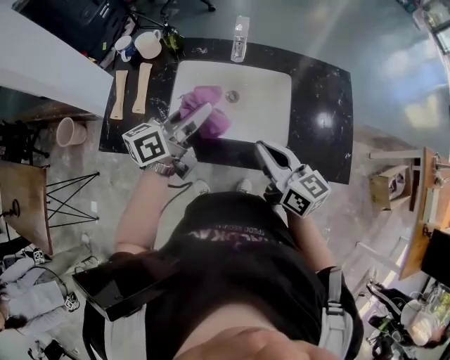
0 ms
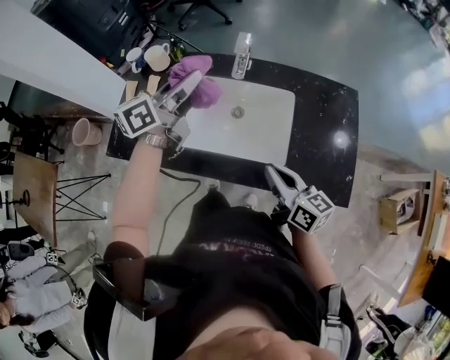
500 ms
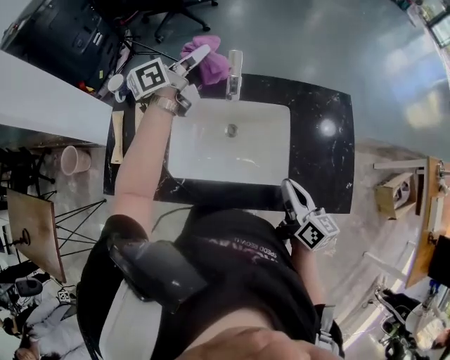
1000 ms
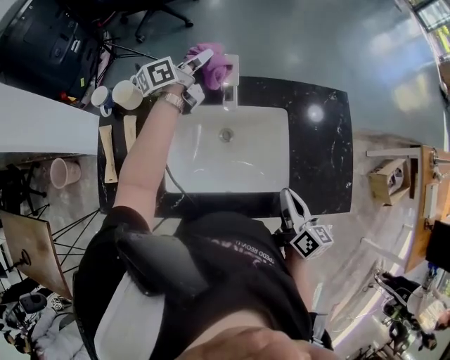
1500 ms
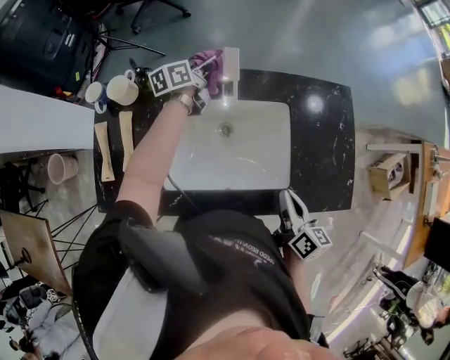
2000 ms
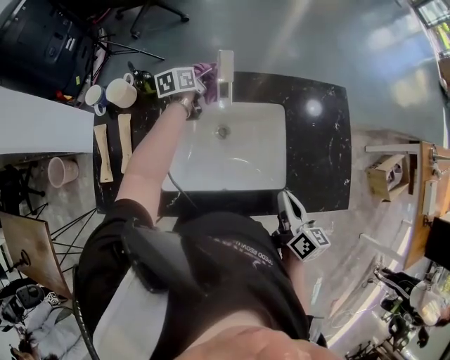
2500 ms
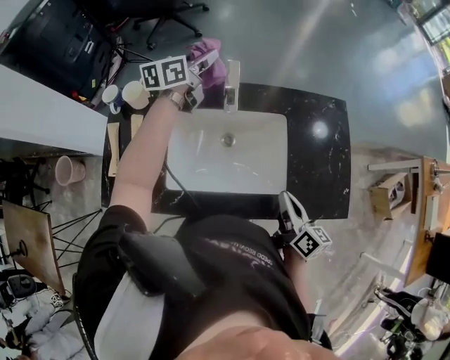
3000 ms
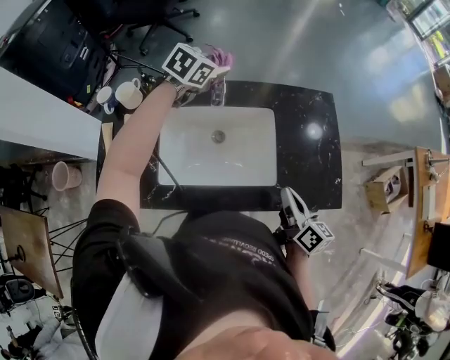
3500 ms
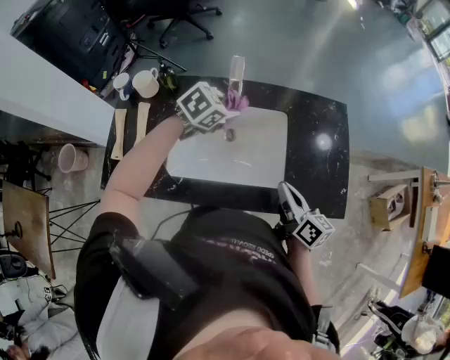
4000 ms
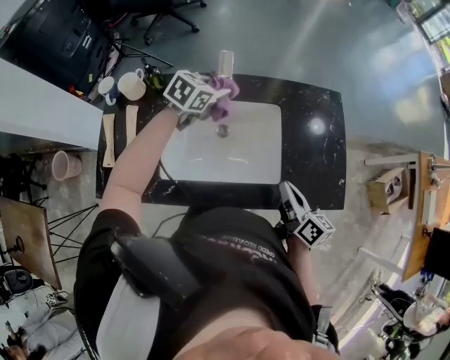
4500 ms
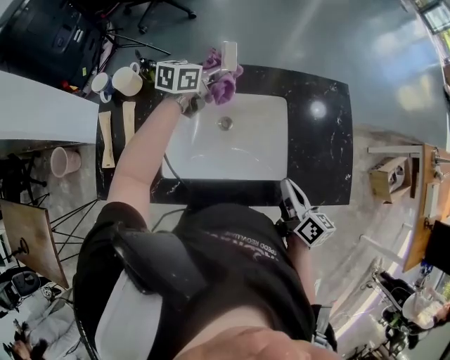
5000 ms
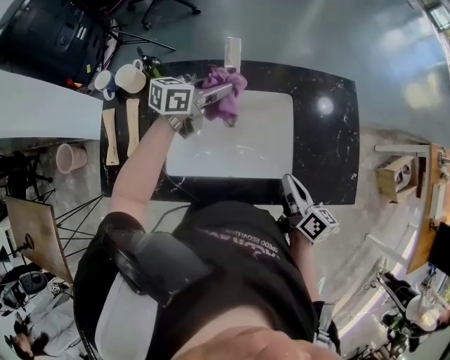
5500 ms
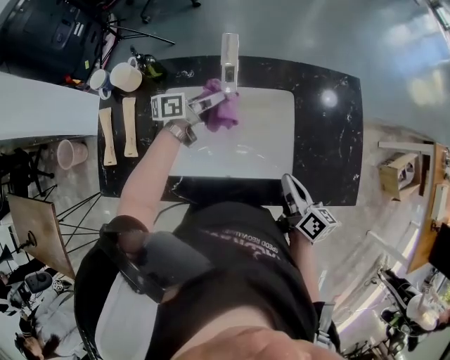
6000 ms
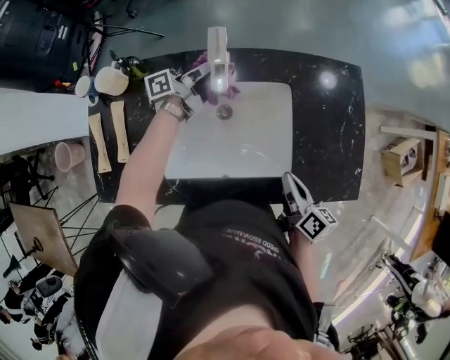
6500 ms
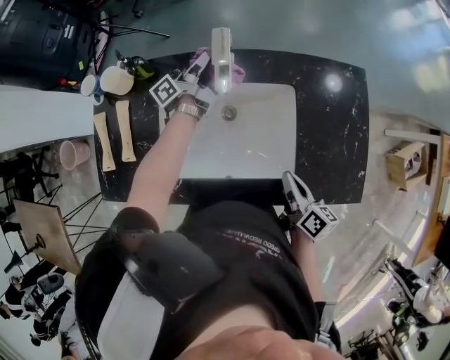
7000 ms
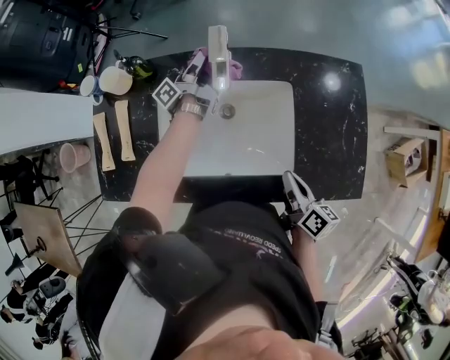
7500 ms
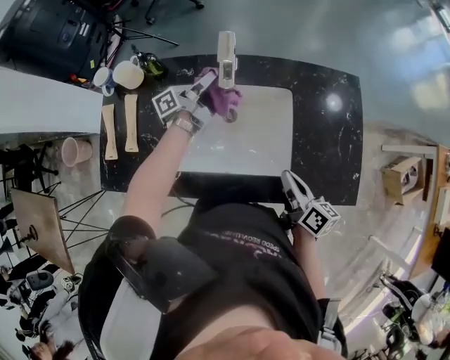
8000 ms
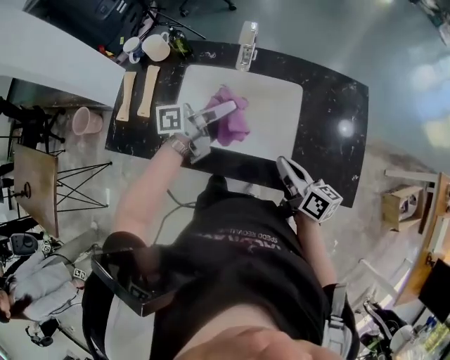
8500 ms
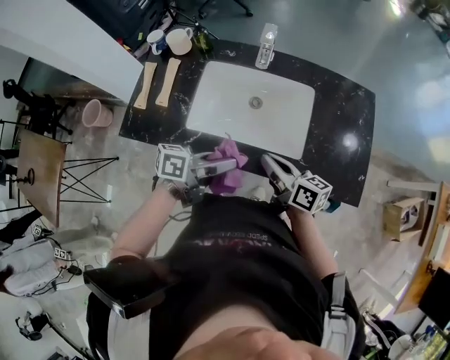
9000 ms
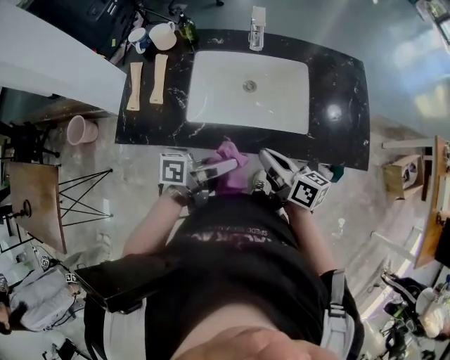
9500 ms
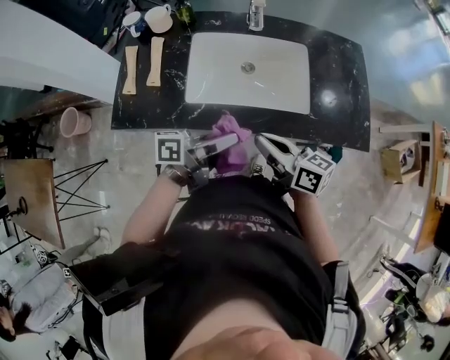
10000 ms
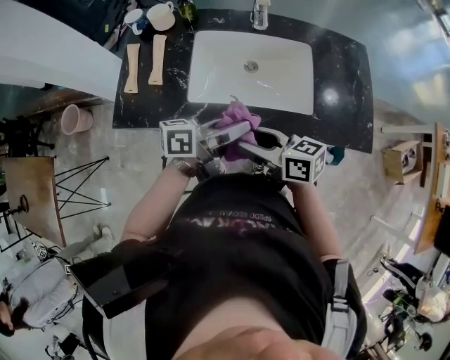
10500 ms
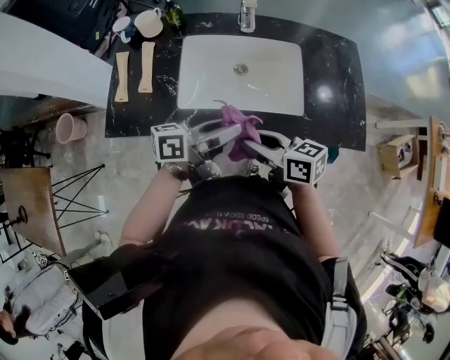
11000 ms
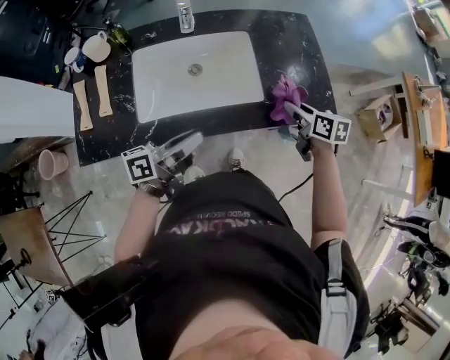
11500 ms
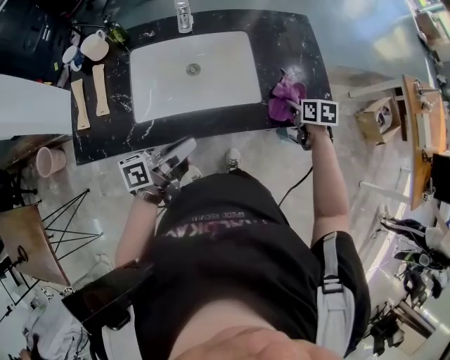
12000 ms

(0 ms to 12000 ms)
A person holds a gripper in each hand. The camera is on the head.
0 ms - 2000 ms: The left gripper moves forward, some 35 cm. Meanwhile the right gripper heads to the right, downward and forward, covering approximately 15 cm, and swivels about 40 degrees.
2000 ms - 4000 ms: The left gripper moves up and down over roughly 20 cm, changing direction 2 times, and rotates around the line of its fingers by roughly 50 degrees, clockwise from behind.
4000 ms - 6000 ms: The right gripper shifts some 5 cm downward; the left gripper travels downward and to the left by about 10 cm, reaches approximately 10 cm forward, then returns, and twists about 60 degrees counterclockwise, seen from behind.
6000 ms - 8000 ms: The left gripper goes forward and returns, some 10 cm each way, and changes its angle by some 40 degrees.
8000 ms - 10000 ms: The right gripper travels to the left, backward and upward by some 20 cm, and changes its angle by roughly 30 degrees. The left gripper is displaced backward by about 40 cm, and swivels some 30 degrees.
10000 ms - 12000 ms: The right gripper changes place by roughly 35 cm, tilts its fingers roughly 40 degrees downward, and opens its fingers.

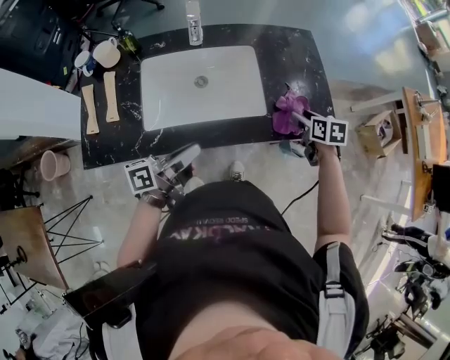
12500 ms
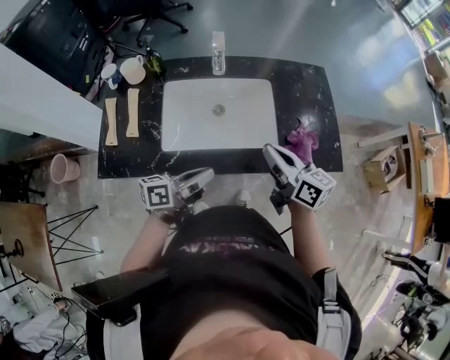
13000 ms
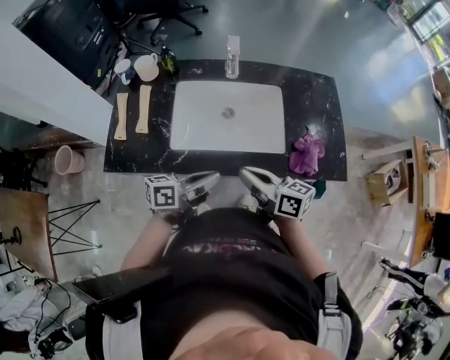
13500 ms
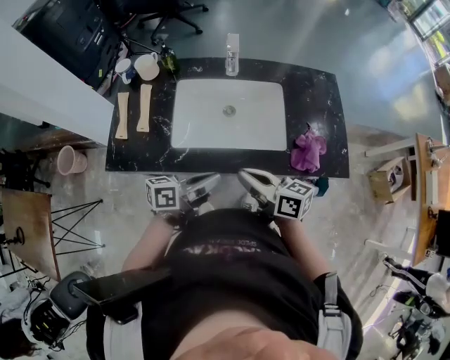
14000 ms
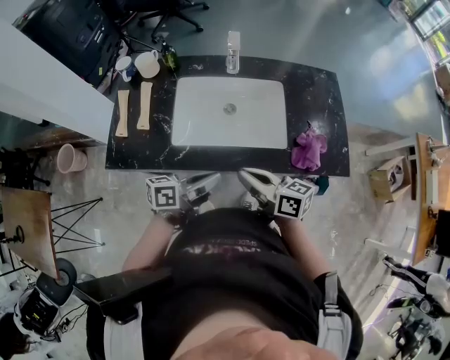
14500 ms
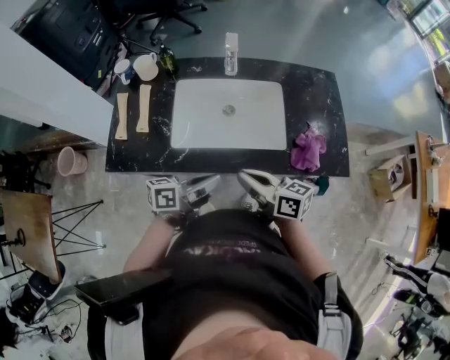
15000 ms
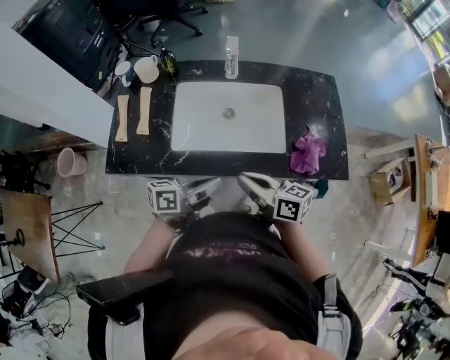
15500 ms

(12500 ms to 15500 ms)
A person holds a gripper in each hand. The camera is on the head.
12500 ms - 14000 ms: The right gripper is displaced to the left, backward and upward by about 35 cm, points its fingers some 40 degrees further upward, and closes.
14000 ms - 15500 ms: Neither gripper changes place.

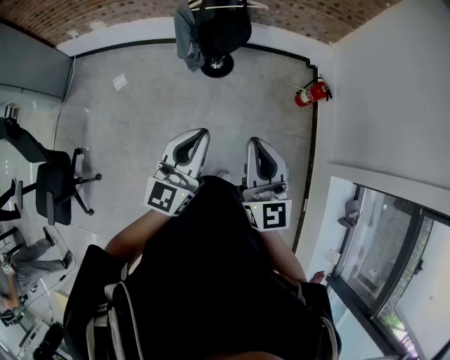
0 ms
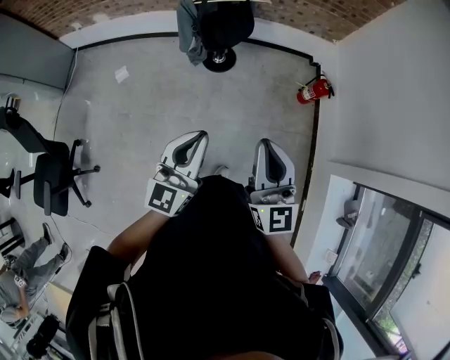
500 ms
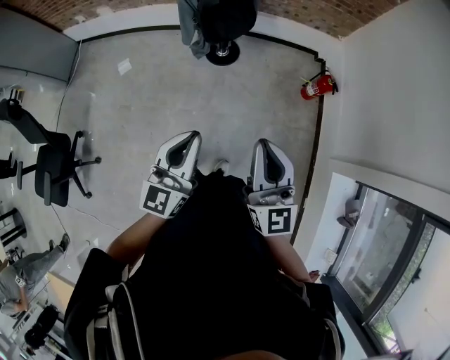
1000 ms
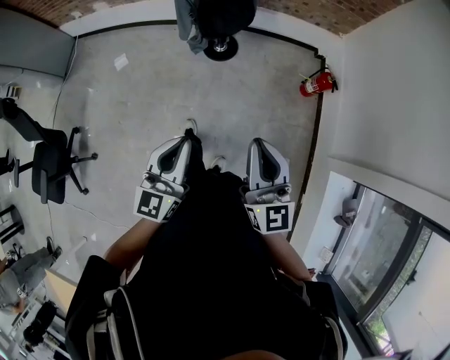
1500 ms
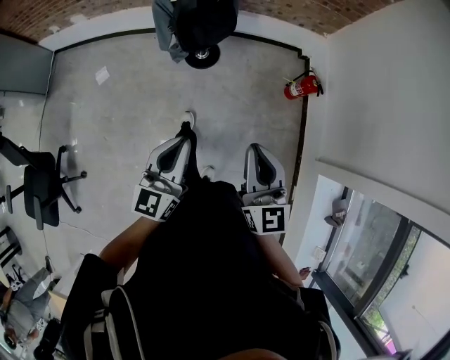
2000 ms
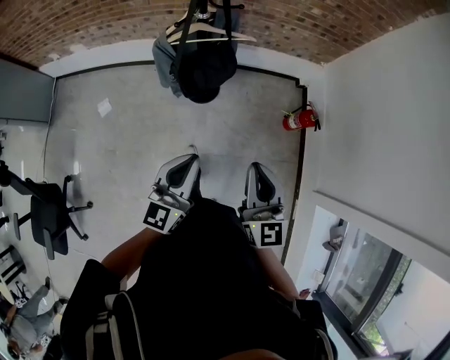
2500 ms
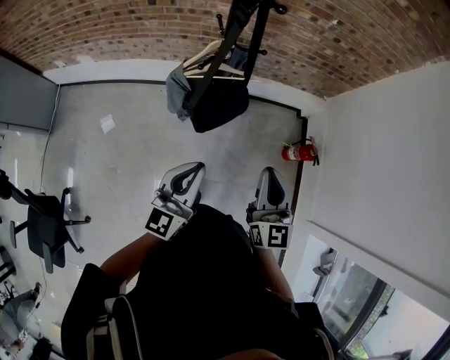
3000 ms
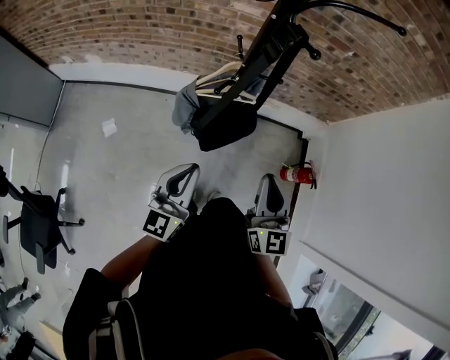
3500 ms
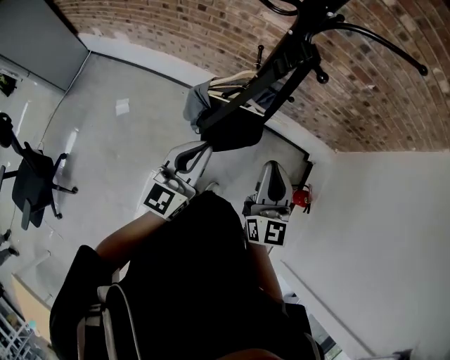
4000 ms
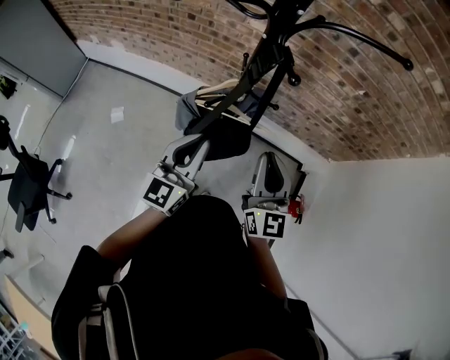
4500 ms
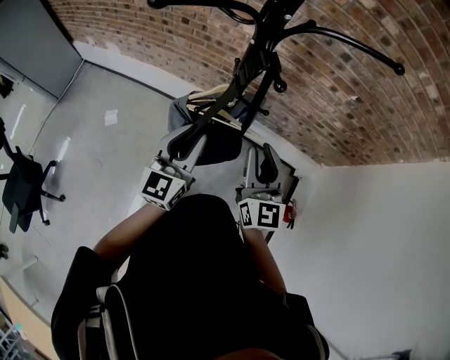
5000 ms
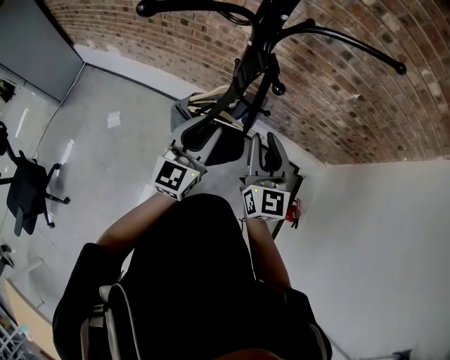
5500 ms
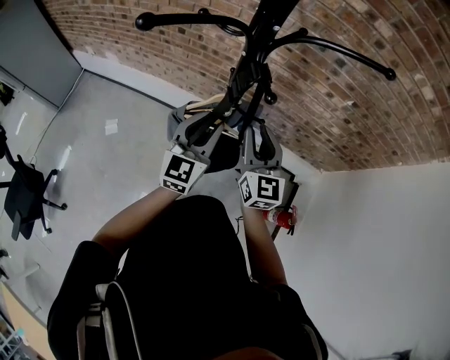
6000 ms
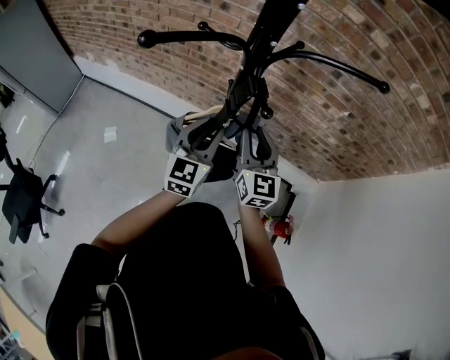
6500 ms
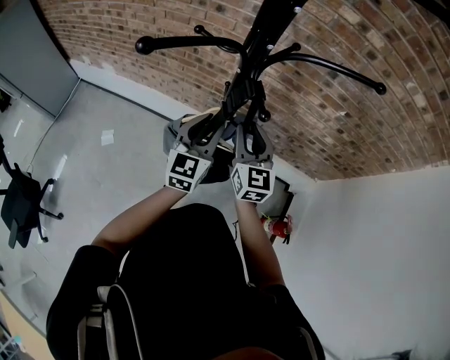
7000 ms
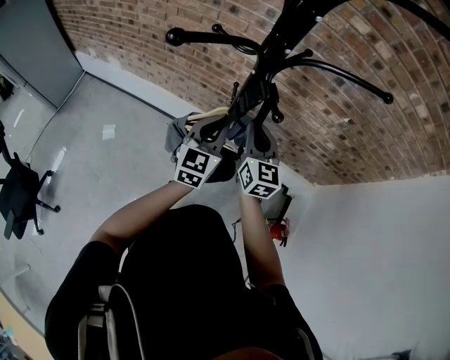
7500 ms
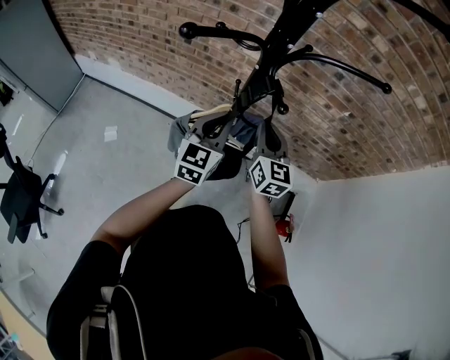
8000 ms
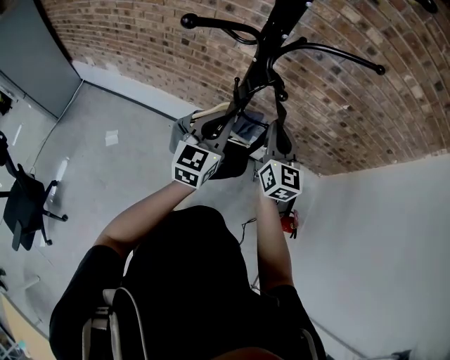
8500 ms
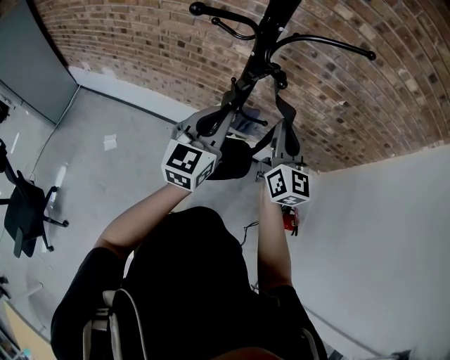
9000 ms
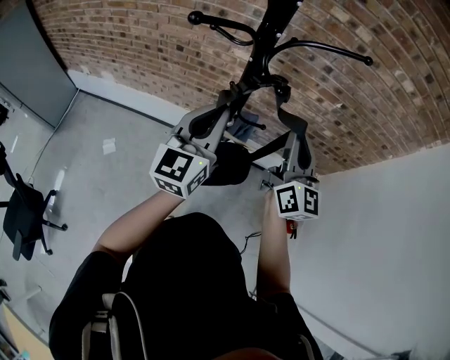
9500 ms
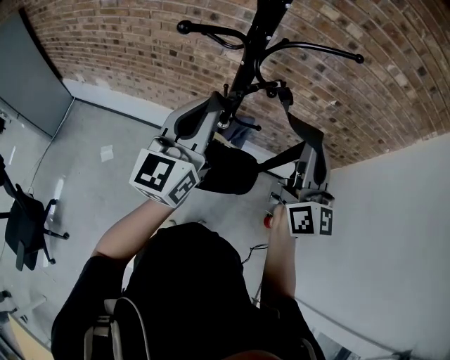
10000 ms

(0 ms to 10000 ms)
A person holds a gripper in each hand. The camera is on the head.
0 ms - 2000 ms: The right gripper goes some 10 cm to the right, downward and forward, while the left gripper heads downward, covering some 5 cm.
2000 ms - 4000 ms: Both grippers move forward, approximately 40 cm.
4000 ms - 6000 ms: The left gripper is displaced forward and to the right by some 15 cm, and opens up, while the right gripper goes roughly 15 cm forward.
6000 ms - 8000 ms: The left gripper closes up.
8000 ms - 10000 ms: The left gripper travels upward and backward by about 20 cm, and swivels approximately 20 degrees. Meanwhile the right gripper moves upward, backward and to the right, about 25 cm, and turns by roughly 30 degrees.

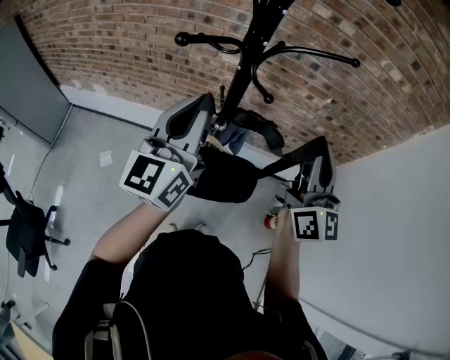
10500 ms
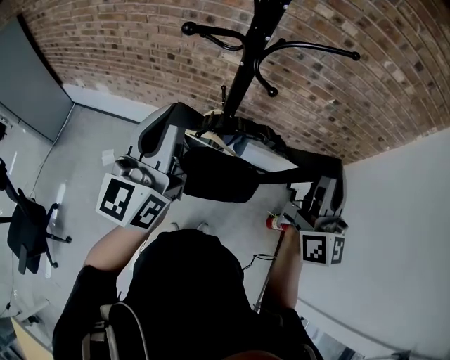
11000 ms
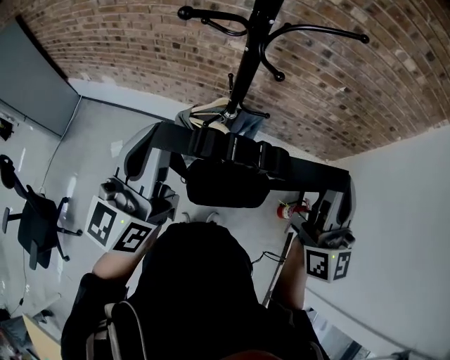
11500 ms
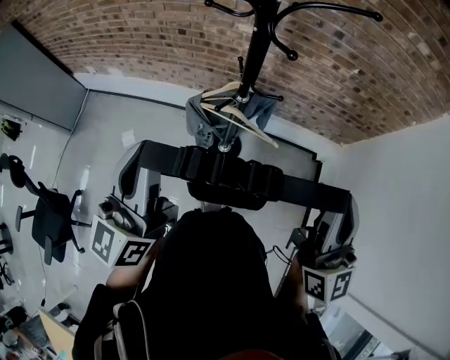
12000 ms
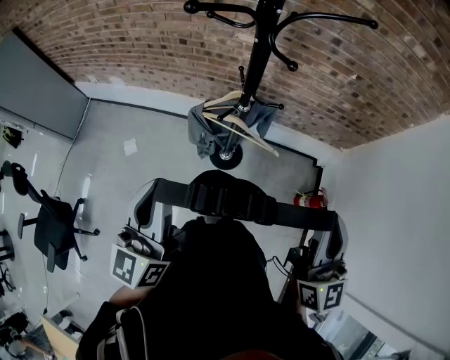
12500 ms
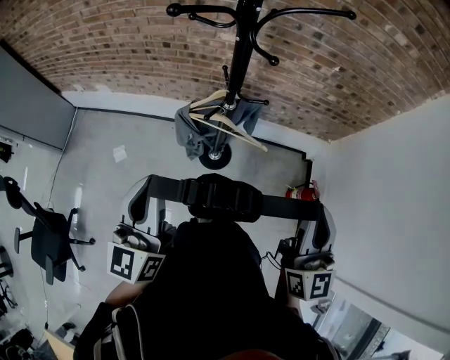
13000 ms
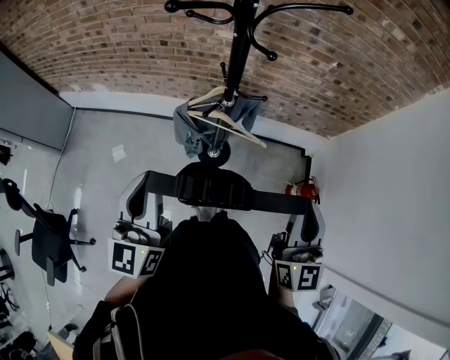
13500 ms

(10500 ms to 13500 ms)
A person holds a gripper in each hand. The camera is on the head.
10500 ms - 12000 ms: The left gripper shifts about 15 cm backward and to the left, while the right gripper goes approximately 15 cm backward.
12000 ms - 13500 ms: Both grippers travel together downward, some 5 cm.
